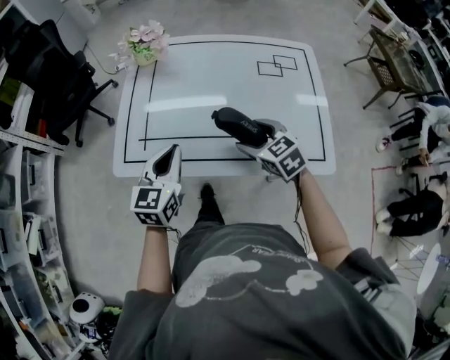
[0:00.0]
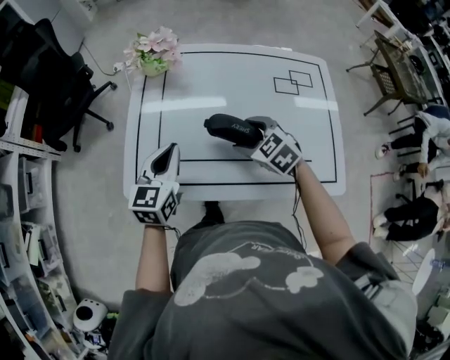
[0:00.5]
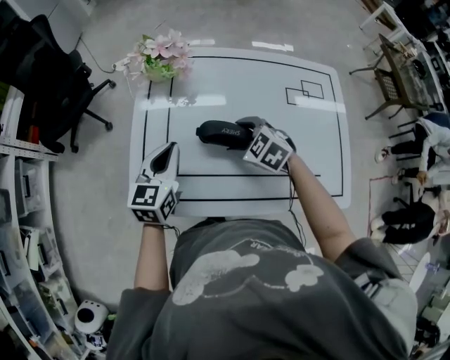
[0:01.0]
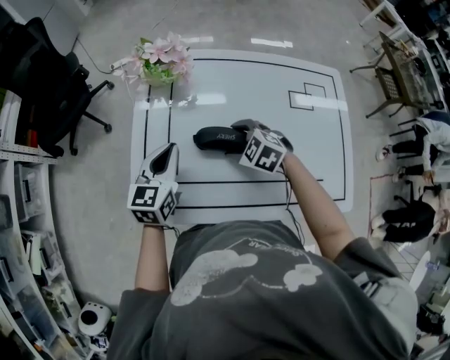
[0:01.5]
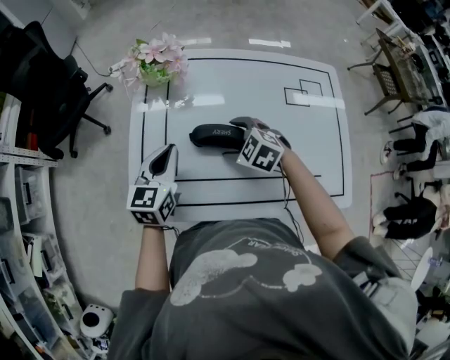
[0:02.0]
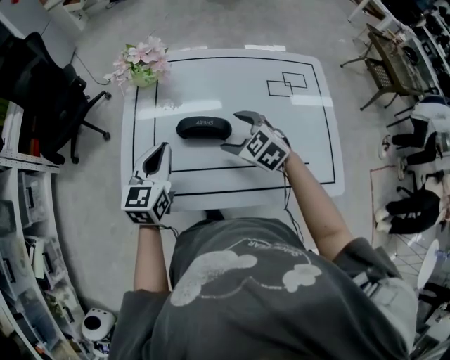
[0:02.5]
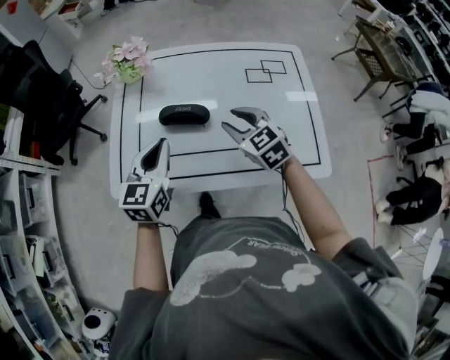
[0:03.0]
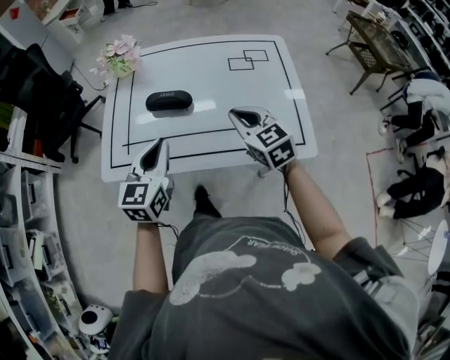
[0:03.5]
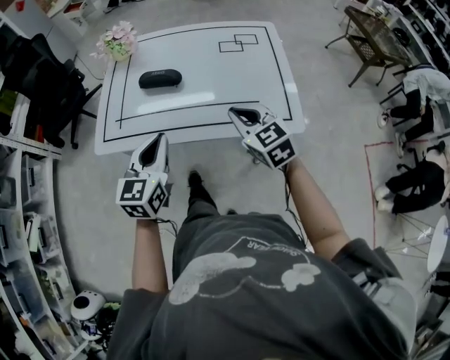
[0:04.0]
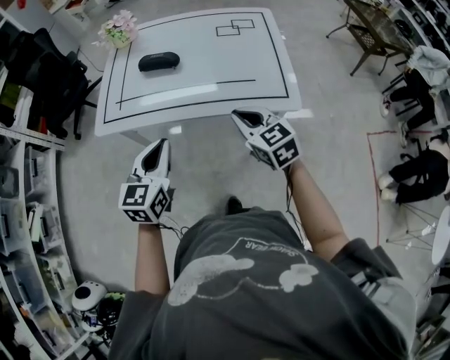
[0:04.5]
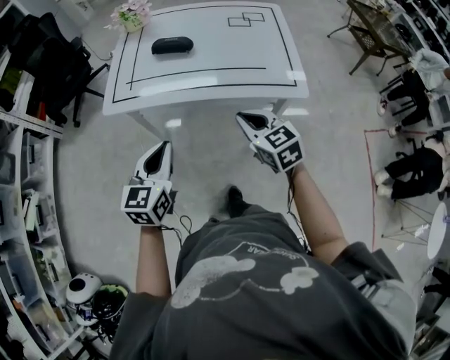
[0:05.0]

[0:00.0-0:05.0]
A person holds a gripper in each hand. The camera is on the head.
0:00.0 to 0:02.5: The two grippers go approximately 15 cm forward.
0:02.5 to 0:05.0: The two grippers go about 35 cm backward. The right gripper swivels some 30 degrees, and closes its fingers.

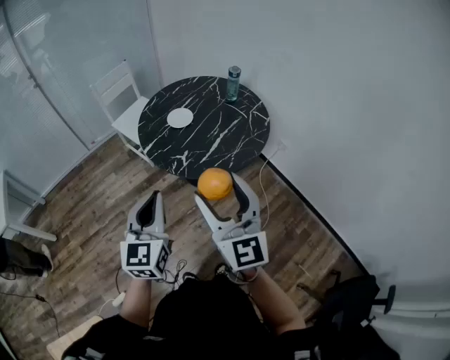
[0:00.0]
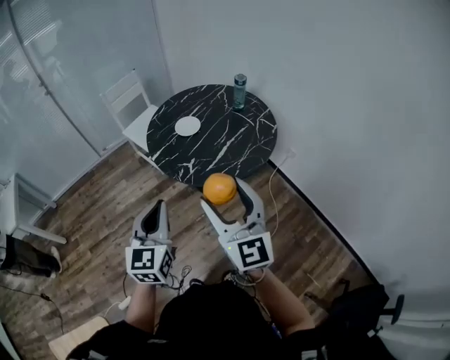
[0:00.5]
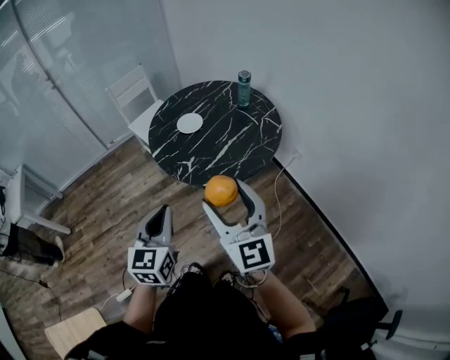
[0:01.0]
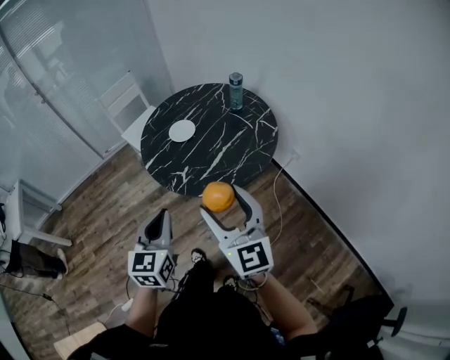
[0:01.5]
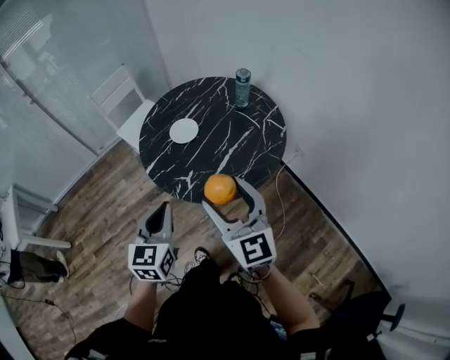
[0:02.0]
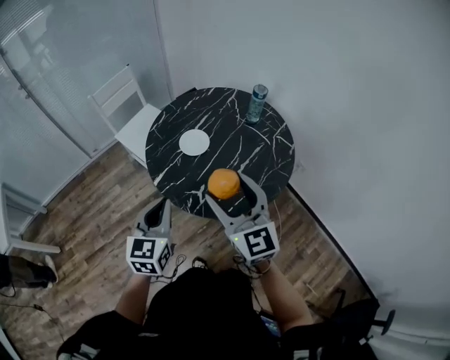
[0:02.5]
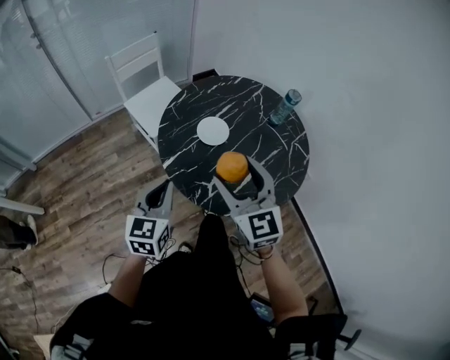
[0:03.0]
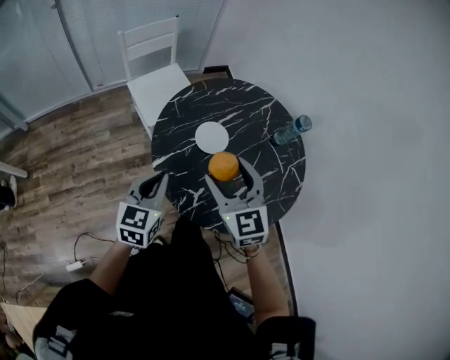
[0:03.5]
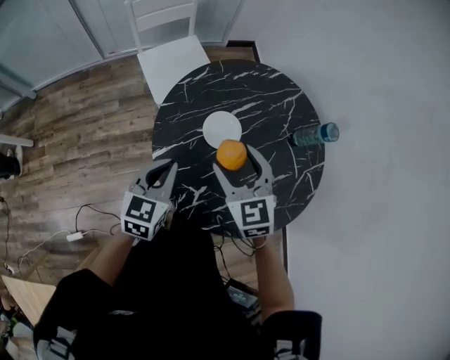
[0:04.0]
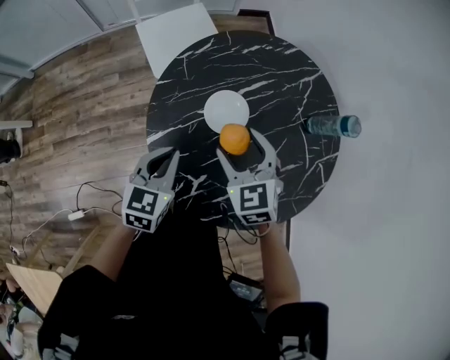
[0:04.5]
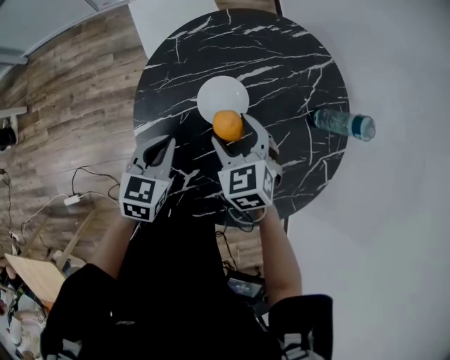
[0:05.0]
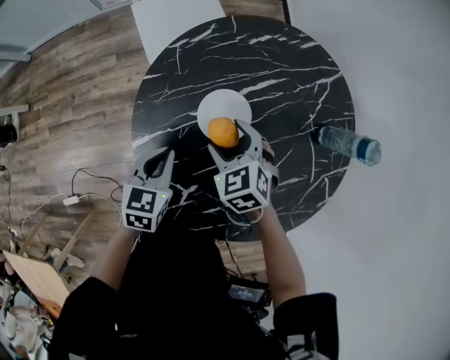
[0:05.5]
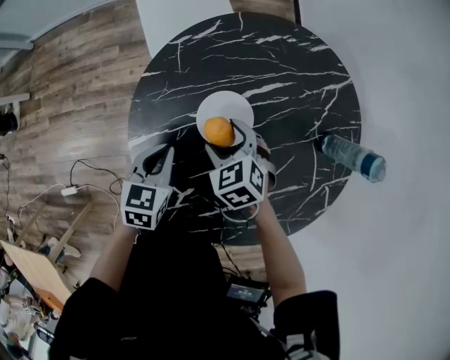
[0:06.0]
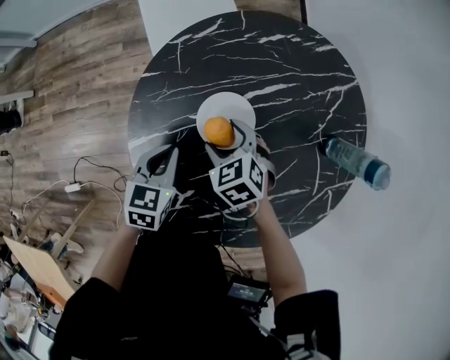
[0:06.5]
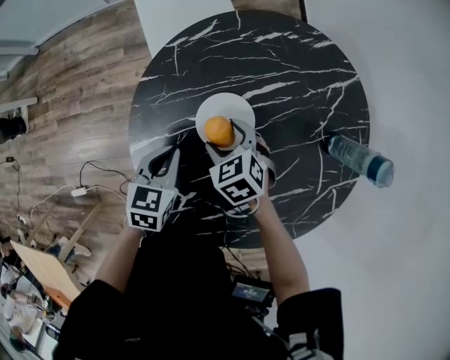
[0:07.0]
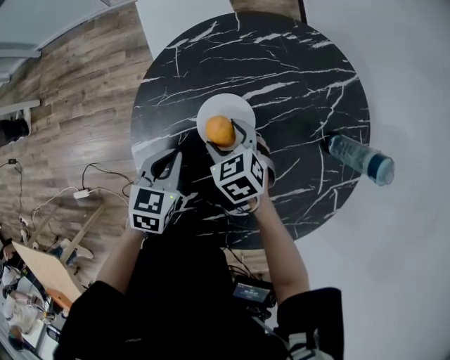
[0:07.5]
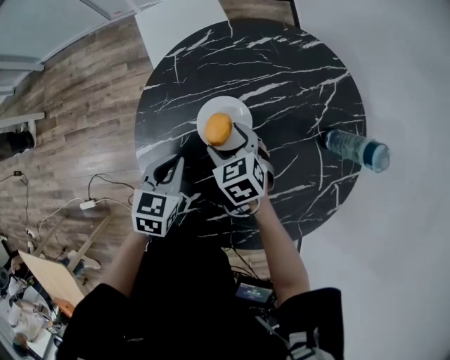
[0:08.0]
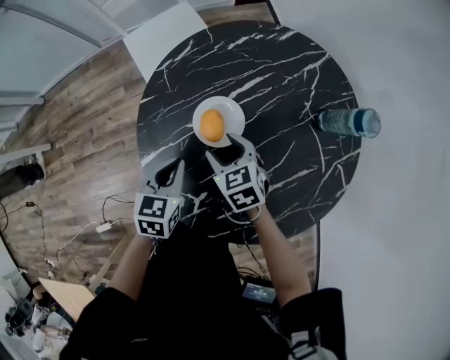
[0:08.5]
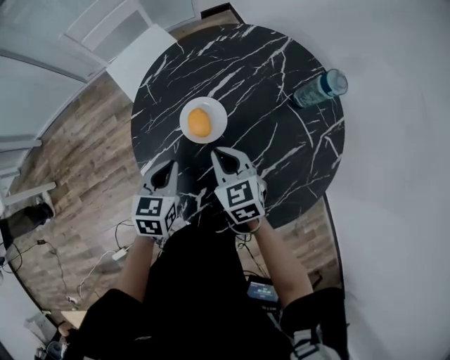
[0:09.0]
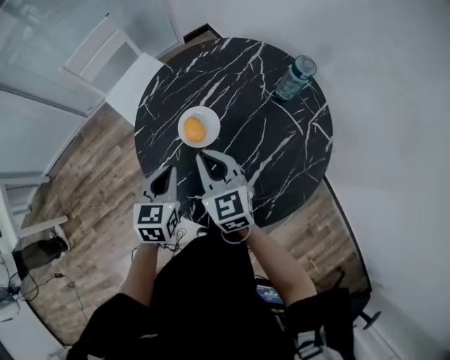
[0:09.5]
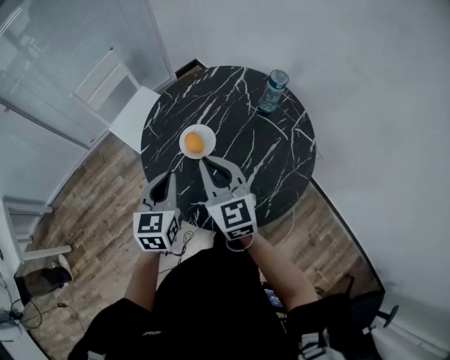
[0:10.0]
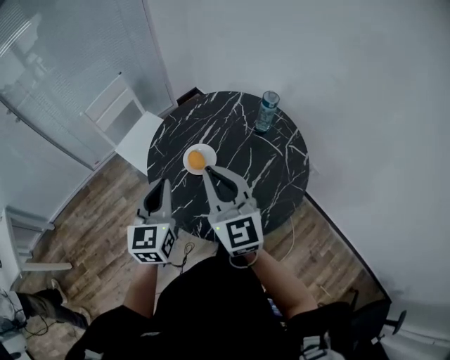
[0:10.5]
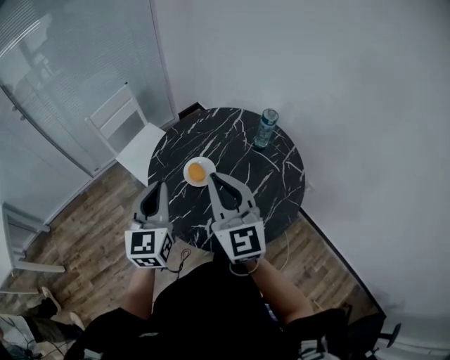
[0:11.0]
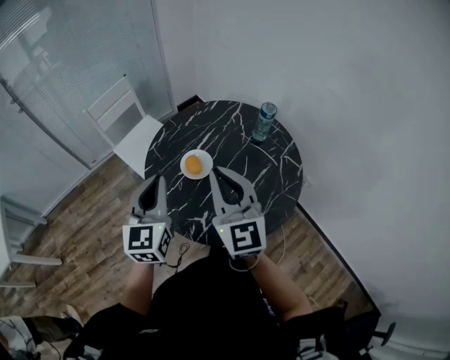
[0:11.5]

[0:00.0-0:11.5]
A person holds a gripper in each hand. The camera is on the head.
0:00.0 to 0:02.0: Both grippers move forward and downward, approximately 15 cm.
0:02.0 to 0:04.0: Both grippers travel together forward, some 30 cm. The right gripper turns by approximately 30 degrees.
0:04.0 to 0:06.0: Both grippers travel together downward, roughly 20 cm. The right gripper turns by roughly 30 degrees; the left gripper turns by approximately 20 degrees.
0:06.0 to 0:07.5: The grippers make only small movements.
0:07.5 to 0:09.5: The left gripper moves upward, about 10 cm, and changes its angle by about 20 degrees; the right gripper heads upward and backward, covering approximately 20 cm, tilts its fingers some 40 degrees upward, and closes.
0:09.5 to 0:11.5: The right gripper is displaced upward and backward by approximately 25 cm, and turns by roughly 30 degrees; the left gripper shifts roughly 25 cm upward, and tilts its fingers approximately 30 degrees upward.

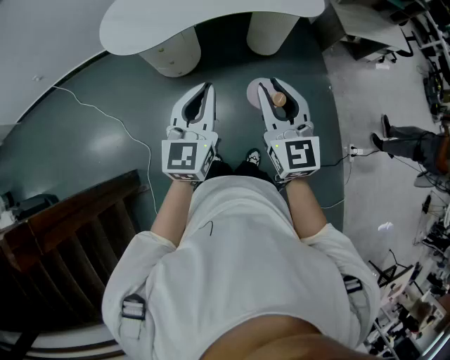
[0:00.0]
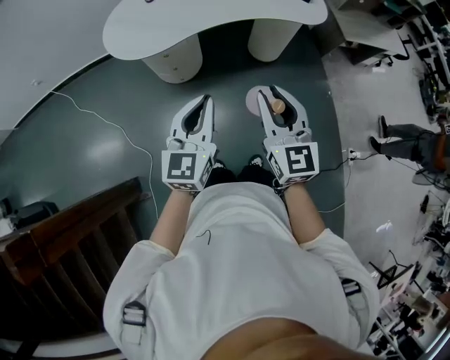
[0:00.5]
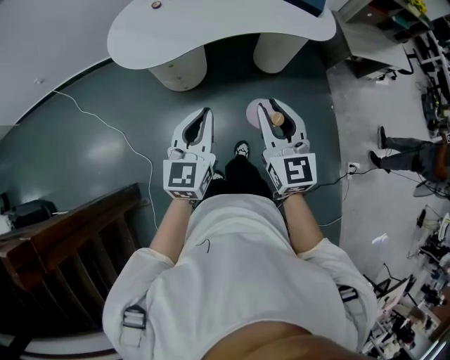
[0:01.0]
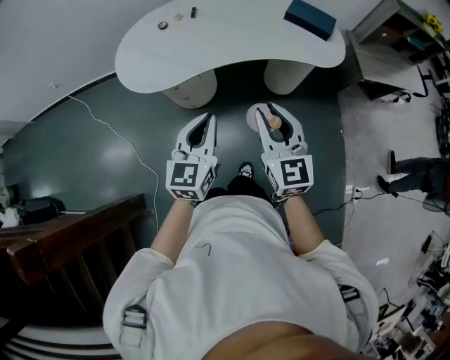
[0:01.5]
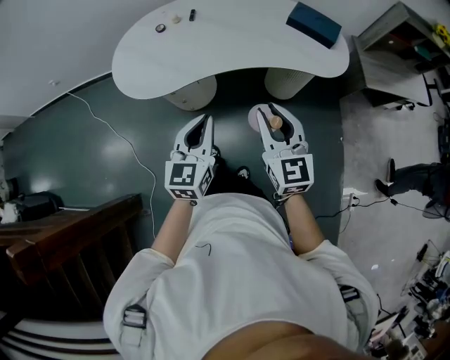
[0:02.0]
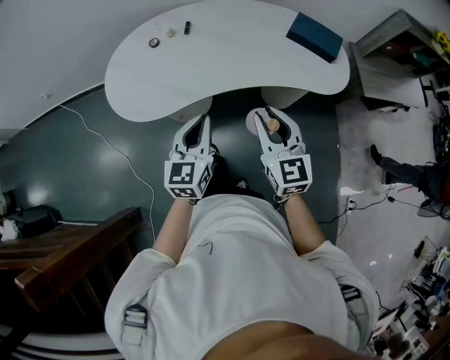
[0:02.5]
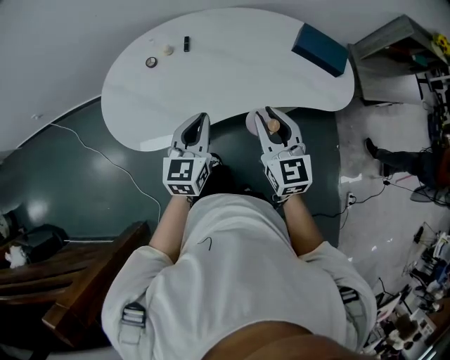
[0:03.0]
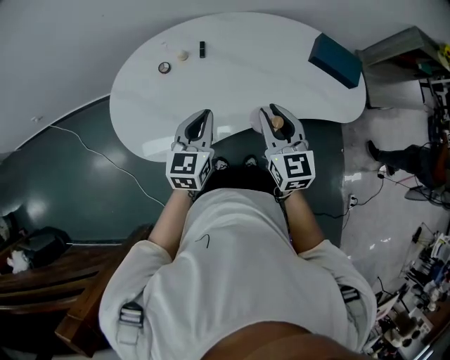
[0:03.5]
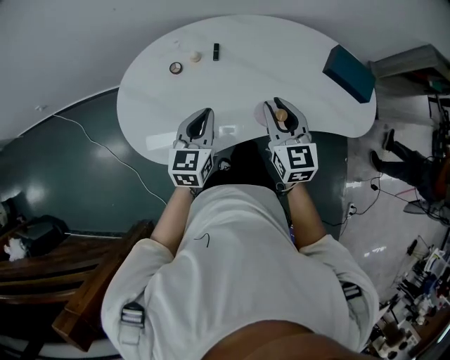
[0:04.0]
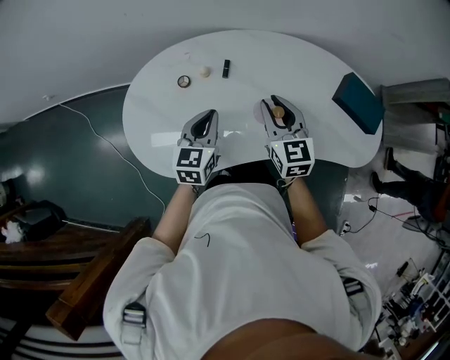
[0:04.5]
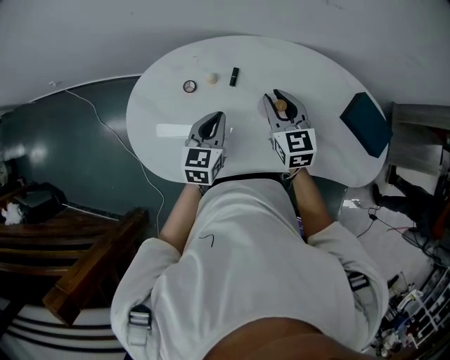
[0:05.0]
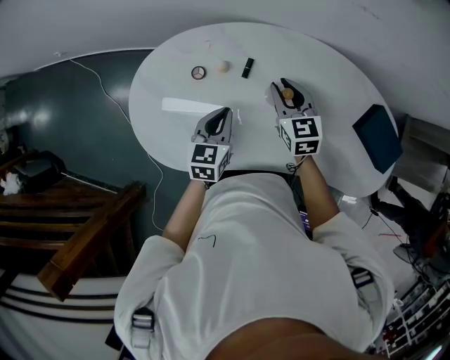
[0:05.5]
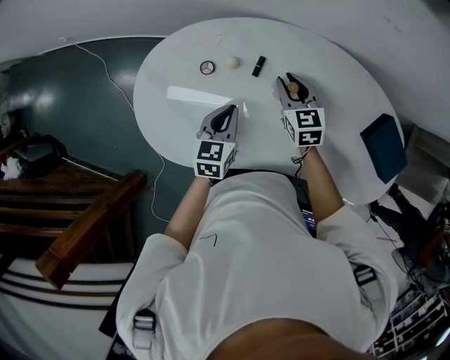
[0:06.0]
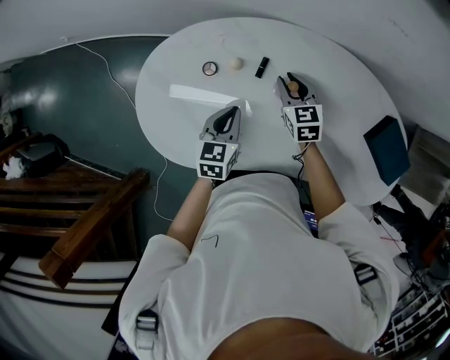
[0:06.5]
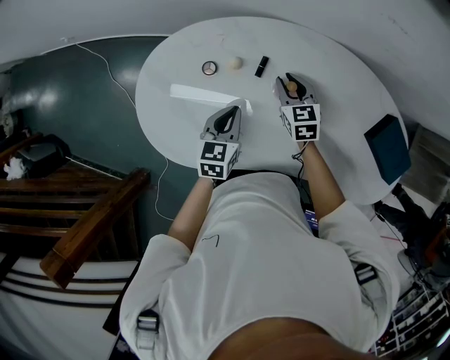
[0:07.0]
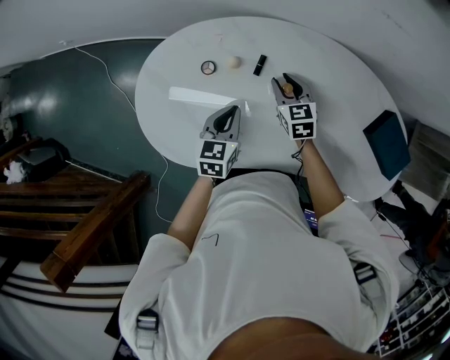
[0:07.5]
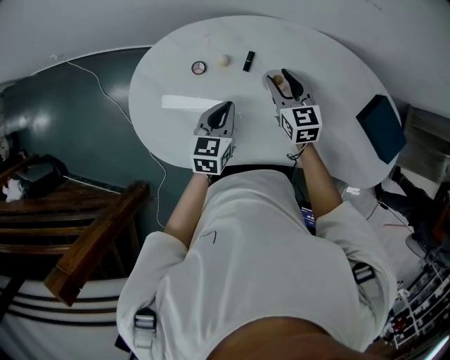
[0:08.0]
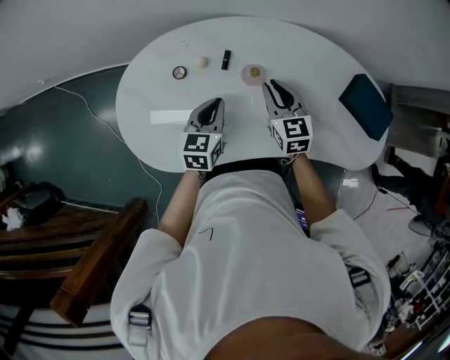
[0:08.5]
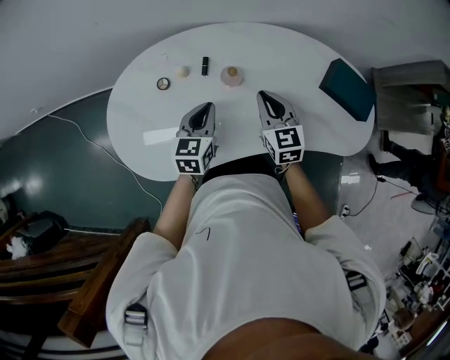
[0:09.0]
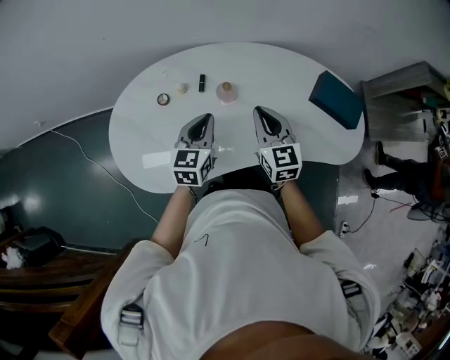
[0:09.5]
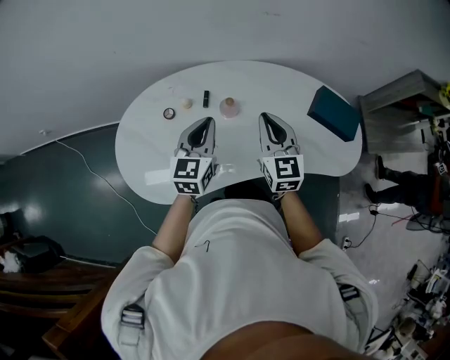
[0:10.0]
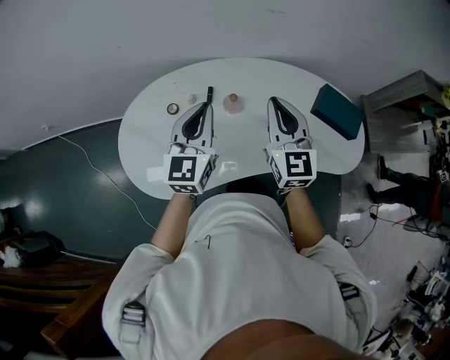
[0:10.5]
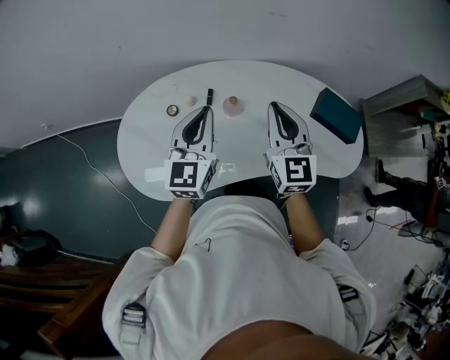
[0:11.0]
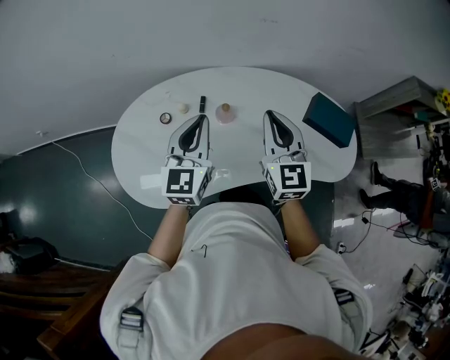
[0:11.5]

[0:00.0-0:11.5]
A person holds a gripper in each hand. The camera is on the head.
0:00.0 to 0:02.0: Both grippers move forward, roughly 20 cm.
0:02.0 to 0:04.0: The grippers both shift forward and to the left by roughly 40 cm.
0:04.0 to 0:06.0: The right gripper is displaced forward and downward by approximately 30 cm, and swivels some 30 degrees; the left gripper goes about 15 cm forward and downward, and turns by about 20 degrees.
0:06.0 to 0:07.5: The grippers make only small movements.
0:07.5 to 0:09.5: The right gripper heads upward, backward and to the right, covering approximately 25 cm, changes its angle by approximately 30 degrees, and closes. Meanwhile the left gripper heads upward and to the right, covering some 10 cm, and changes its angle by some 20 degrees.
0:09.5 to 0:11.5: The two grippers go about 15 cm upward. The left gripper changes its angle by roughly 20 degrees.
